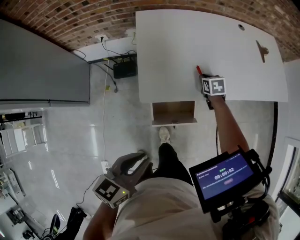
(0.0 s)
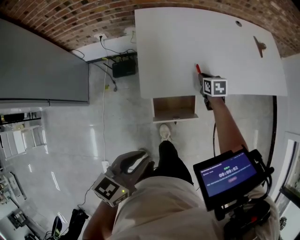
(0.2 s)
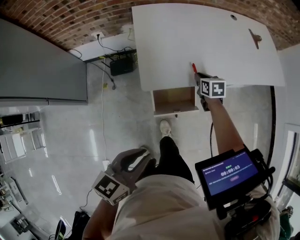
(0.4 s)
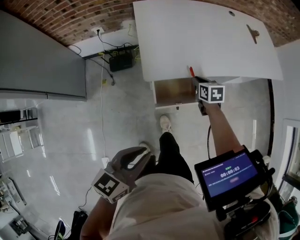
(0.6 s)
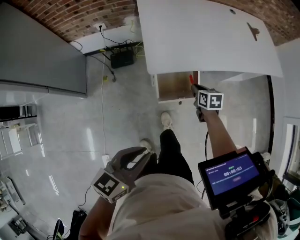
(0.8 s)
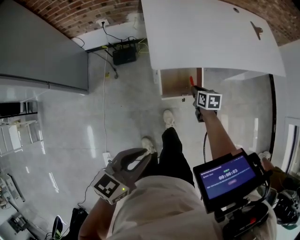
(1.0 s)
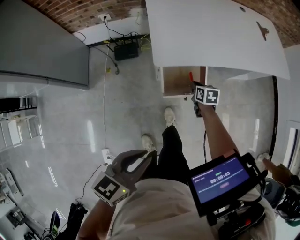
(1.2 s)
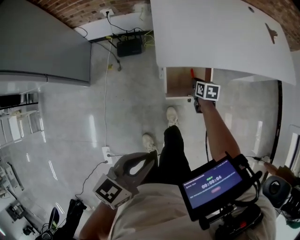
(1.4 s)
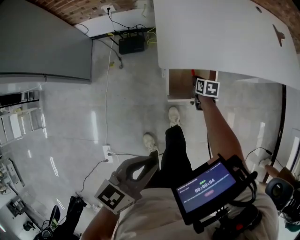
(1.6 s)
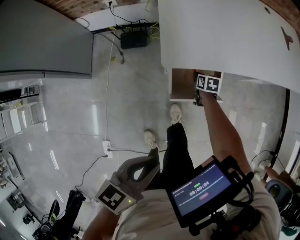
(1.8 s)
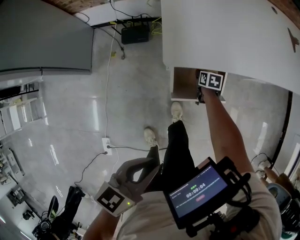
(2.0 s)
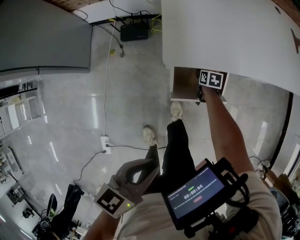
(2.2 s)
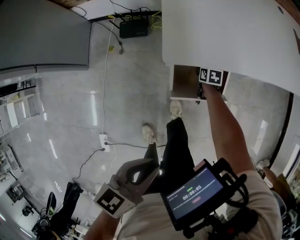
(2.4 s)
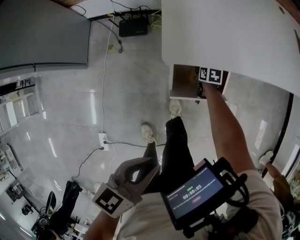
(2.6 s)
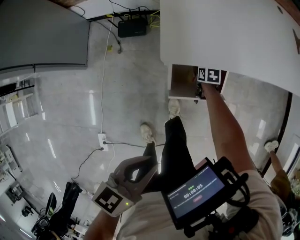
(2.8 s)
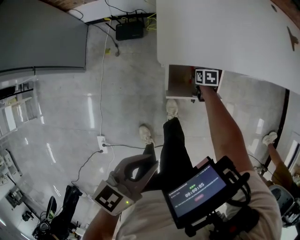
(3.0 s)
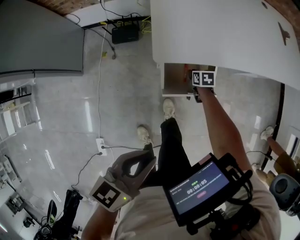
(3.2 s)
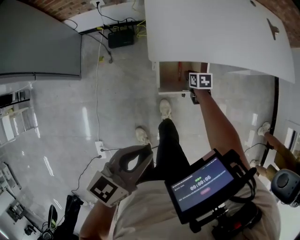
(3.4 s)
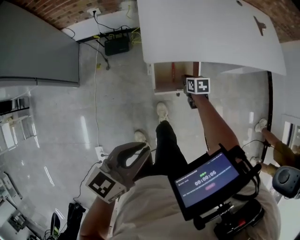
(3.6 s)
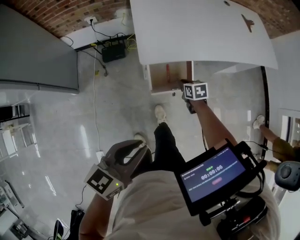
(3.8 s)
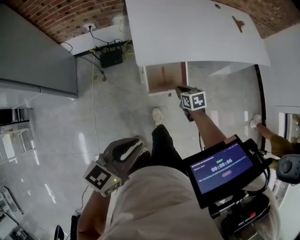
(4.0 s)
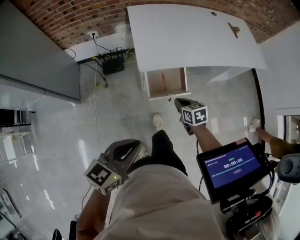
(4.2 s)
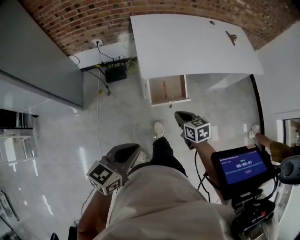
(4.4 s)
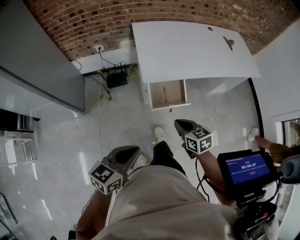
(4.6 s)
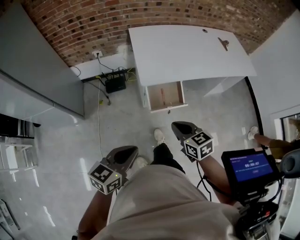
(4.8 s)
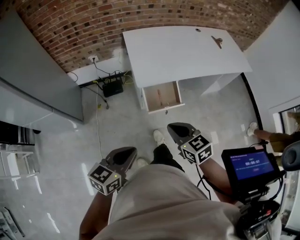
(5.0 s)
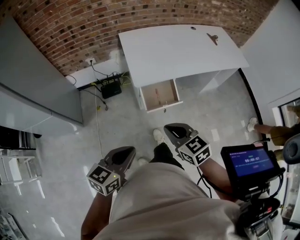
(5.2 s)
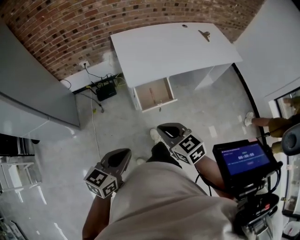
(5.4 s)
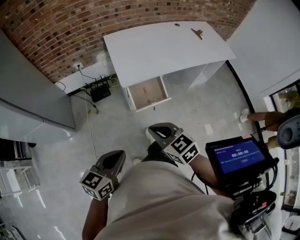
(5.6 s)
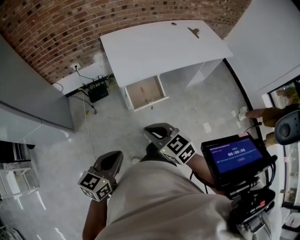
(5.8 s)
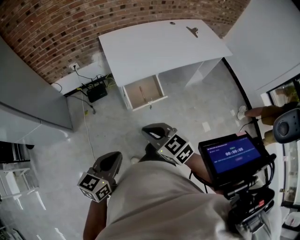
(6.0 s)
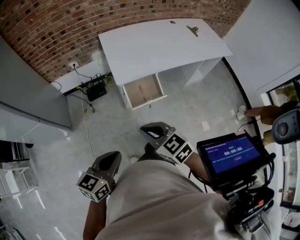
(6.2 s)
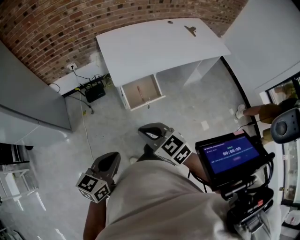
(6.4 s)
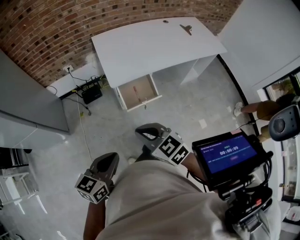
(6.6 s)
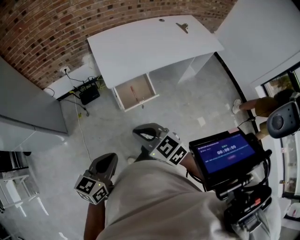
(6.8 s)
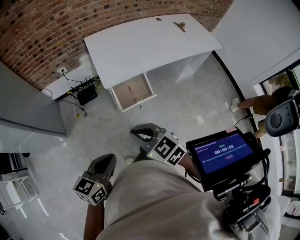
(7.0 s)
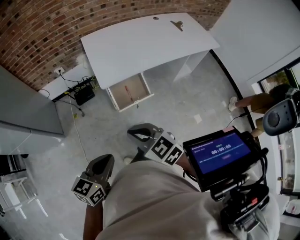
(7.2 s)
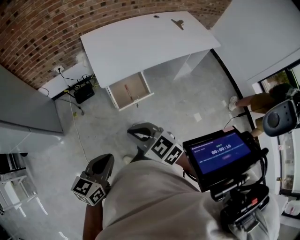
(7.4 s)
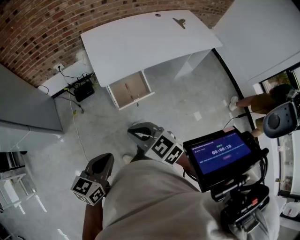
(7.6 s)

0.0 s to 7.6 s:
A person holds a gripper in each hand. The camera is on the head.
0.0 to 1.6 s: The right gripper goes roughly 25 cm backward and downward, while the left gripper goes about 15 cm backward.
1.6 to 3.0 s: The left gripper is displaced downward by some 5 cm, while the right gripper goes approximately 10 cm downward.
3.0 to 4.6 s: The right gripper goes roughly 50 cm upward and backward, and rotates about 30 degrees; the left gripper shifts roughly 15 cm backward and upward.
4.6 to 6.0 s: The right gripper goes roughly 15 cm upward, backward and to the left.
6.0 to 7.6 s: There are only small adjustments of the grippers.

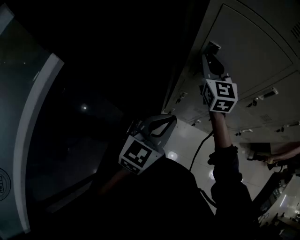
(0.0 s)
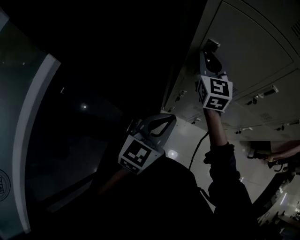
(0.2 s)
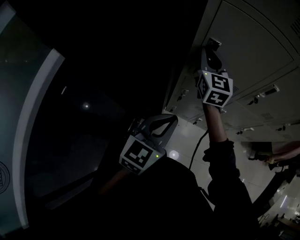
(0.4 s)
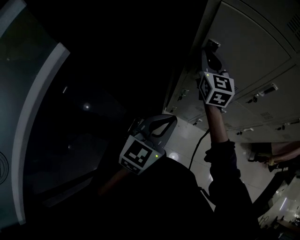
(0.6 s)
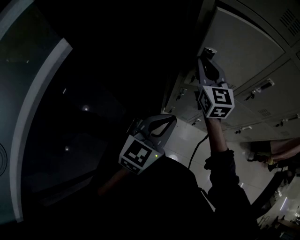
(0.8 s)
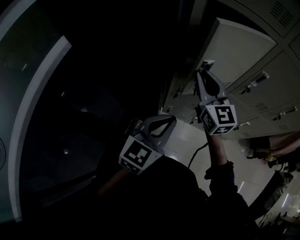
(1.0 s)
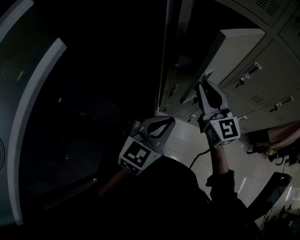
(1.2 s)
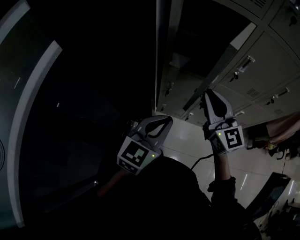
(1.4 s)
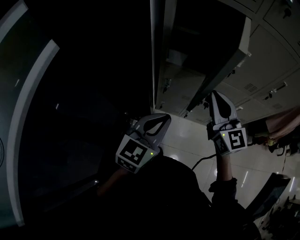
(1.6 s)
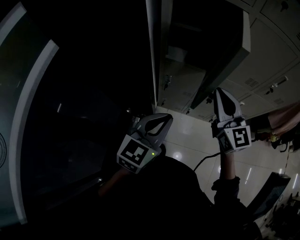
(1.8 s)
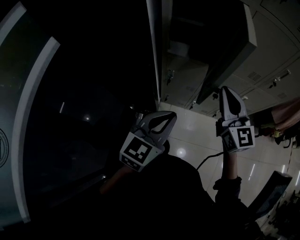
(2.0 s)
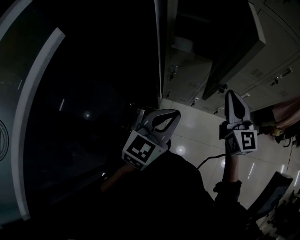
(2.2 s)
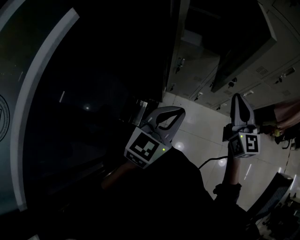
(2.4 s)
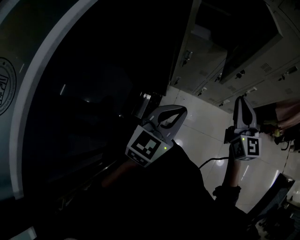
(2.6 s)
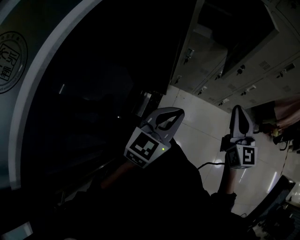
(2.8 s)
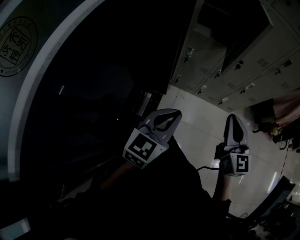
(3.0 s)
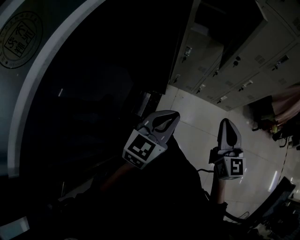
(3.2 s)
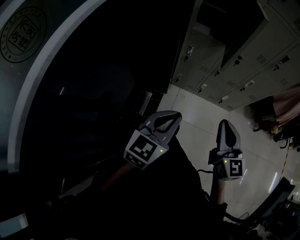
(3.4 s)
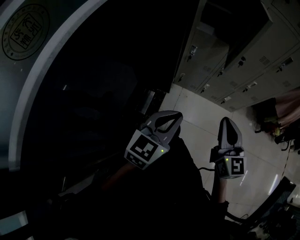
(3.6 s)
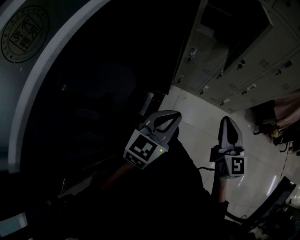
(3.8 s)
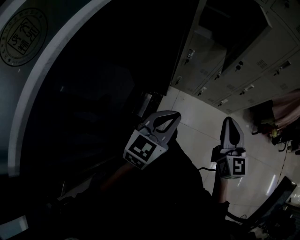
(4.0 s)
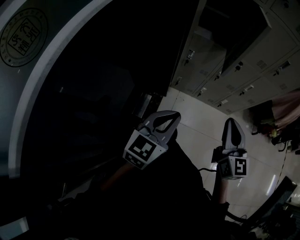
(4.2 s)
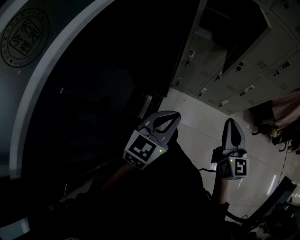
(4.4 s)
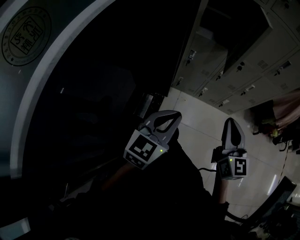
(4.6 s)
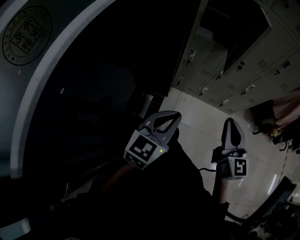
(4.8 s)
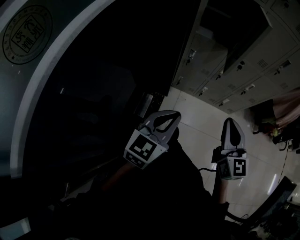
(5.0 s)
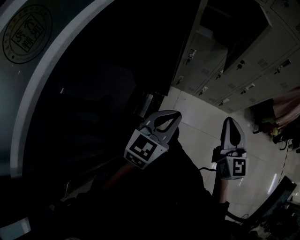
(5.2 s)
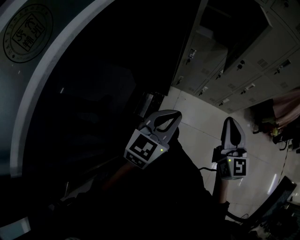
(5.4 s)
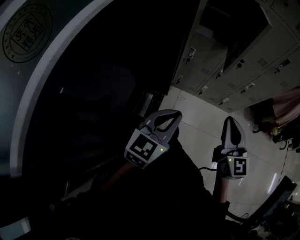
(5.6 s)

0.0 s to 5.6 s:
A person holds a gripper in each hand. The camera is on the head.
0.0 to 1.4 s: The left gripper shifts about 10 cm backward and to the right. Meanwhile the right gripper is displaced backward and to the right by roughly 25 cm.
1.4 to 2.8 s: The two grippers go some 20 cm backward.
2.8 to 4.2 s: The left gripper goes about 5 cm backward. Meanwhile the right gripper shifts about 10 cm backward.
4.2 to 5.6 s: The grippers make only small movements.

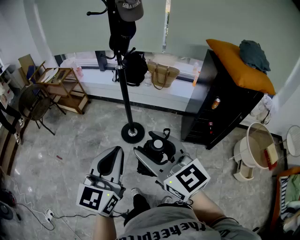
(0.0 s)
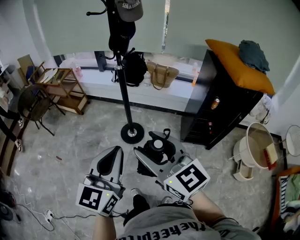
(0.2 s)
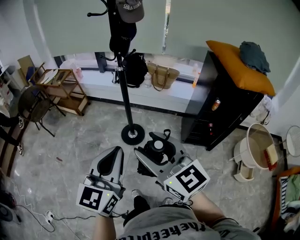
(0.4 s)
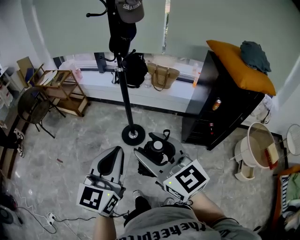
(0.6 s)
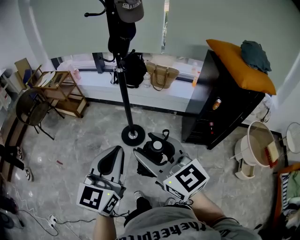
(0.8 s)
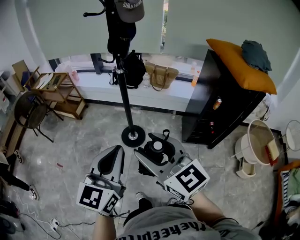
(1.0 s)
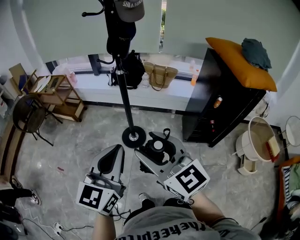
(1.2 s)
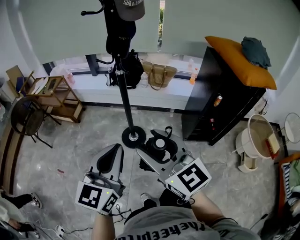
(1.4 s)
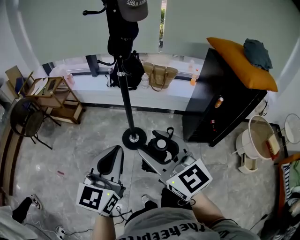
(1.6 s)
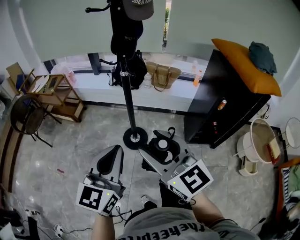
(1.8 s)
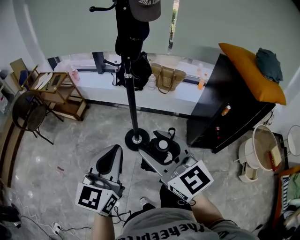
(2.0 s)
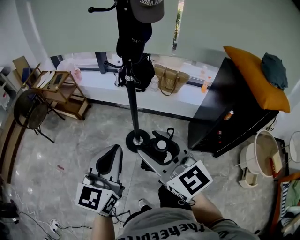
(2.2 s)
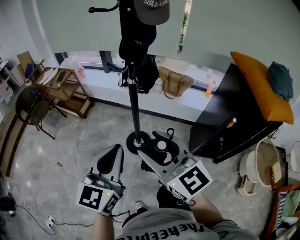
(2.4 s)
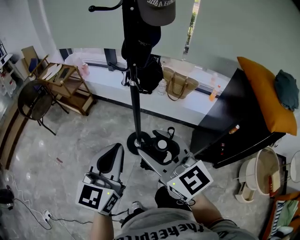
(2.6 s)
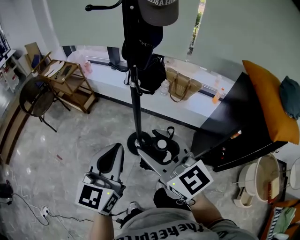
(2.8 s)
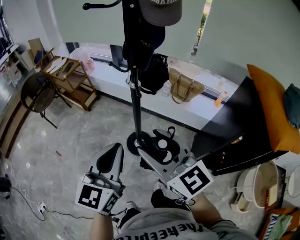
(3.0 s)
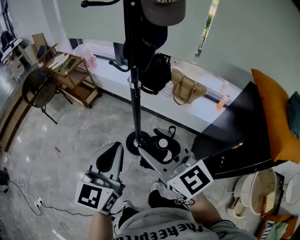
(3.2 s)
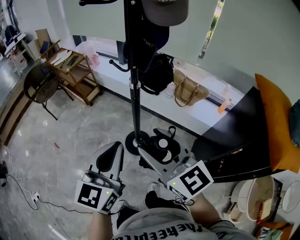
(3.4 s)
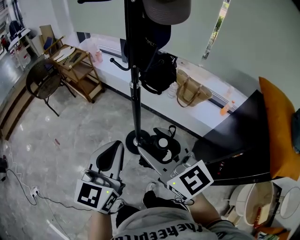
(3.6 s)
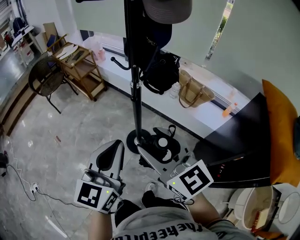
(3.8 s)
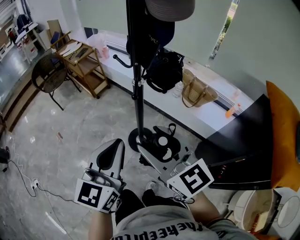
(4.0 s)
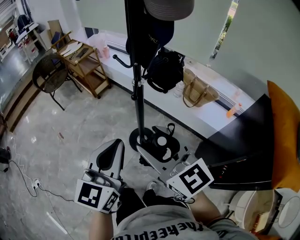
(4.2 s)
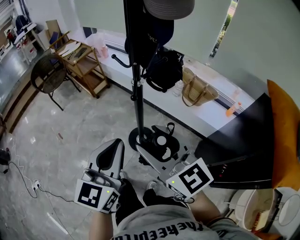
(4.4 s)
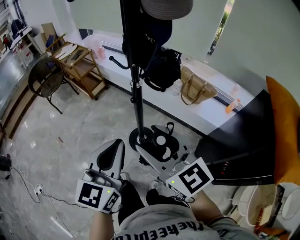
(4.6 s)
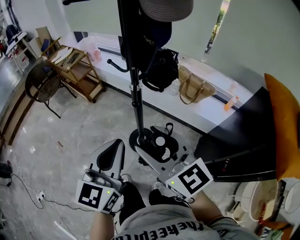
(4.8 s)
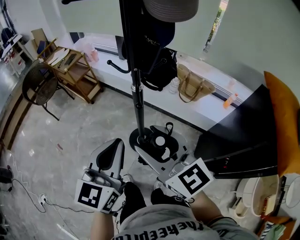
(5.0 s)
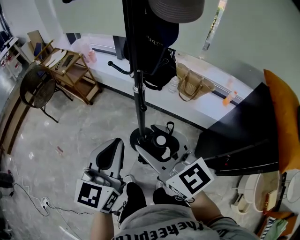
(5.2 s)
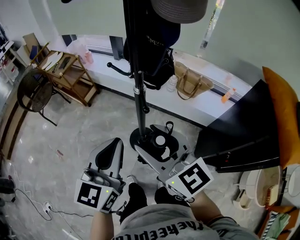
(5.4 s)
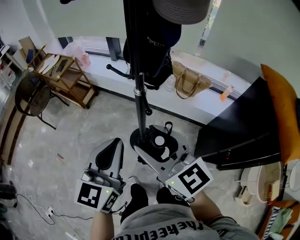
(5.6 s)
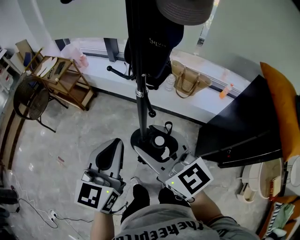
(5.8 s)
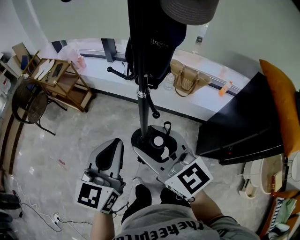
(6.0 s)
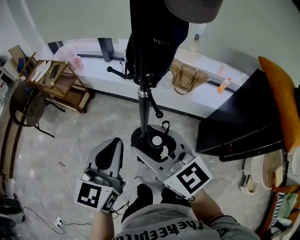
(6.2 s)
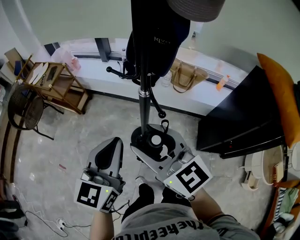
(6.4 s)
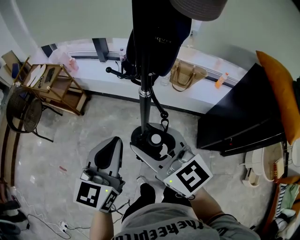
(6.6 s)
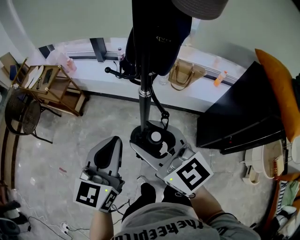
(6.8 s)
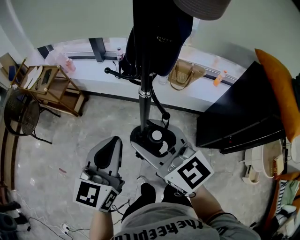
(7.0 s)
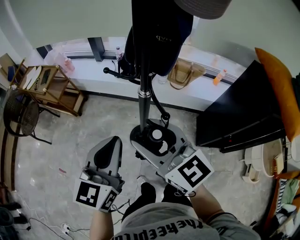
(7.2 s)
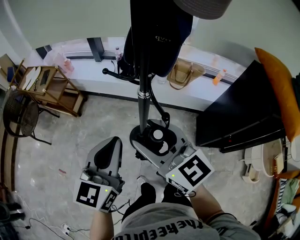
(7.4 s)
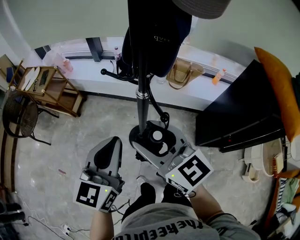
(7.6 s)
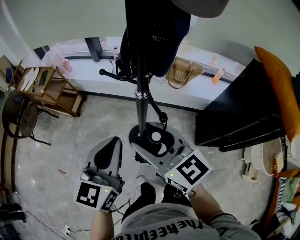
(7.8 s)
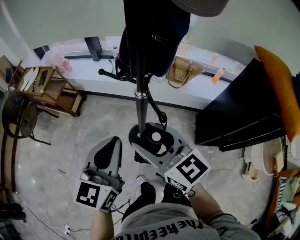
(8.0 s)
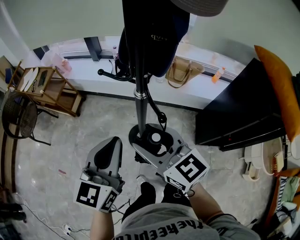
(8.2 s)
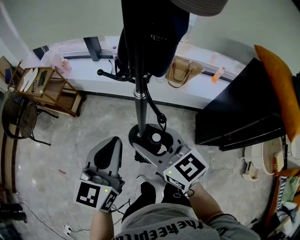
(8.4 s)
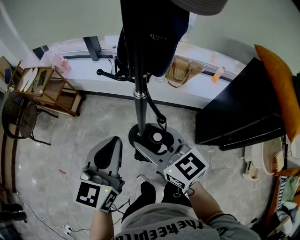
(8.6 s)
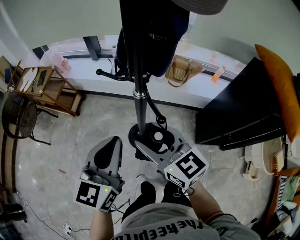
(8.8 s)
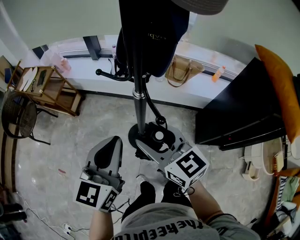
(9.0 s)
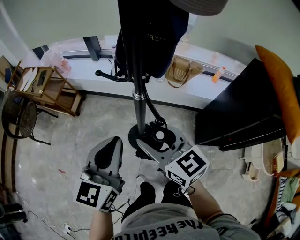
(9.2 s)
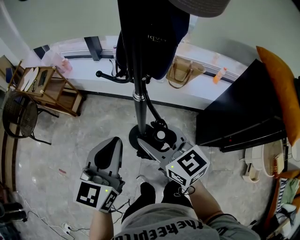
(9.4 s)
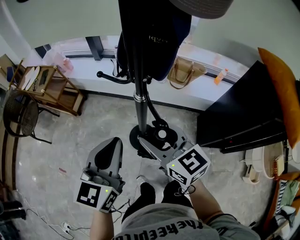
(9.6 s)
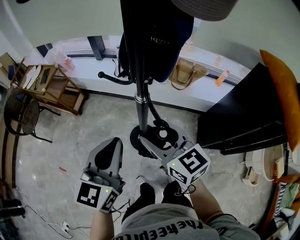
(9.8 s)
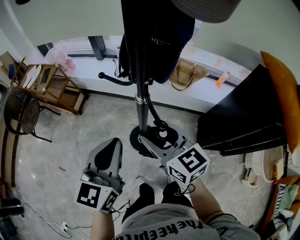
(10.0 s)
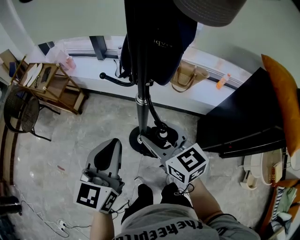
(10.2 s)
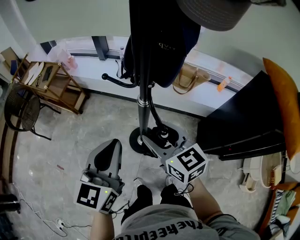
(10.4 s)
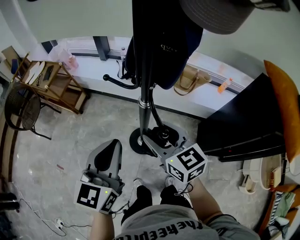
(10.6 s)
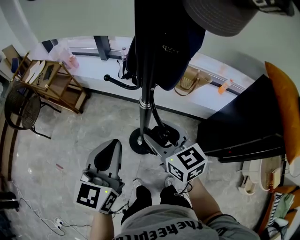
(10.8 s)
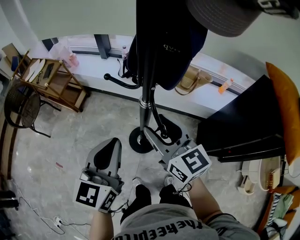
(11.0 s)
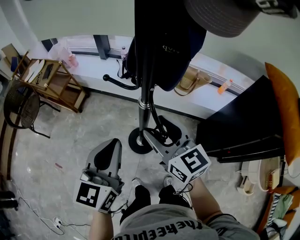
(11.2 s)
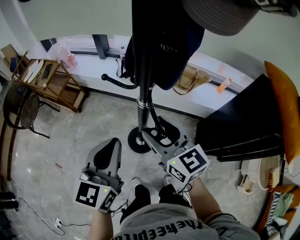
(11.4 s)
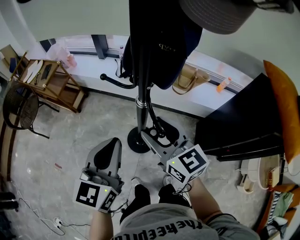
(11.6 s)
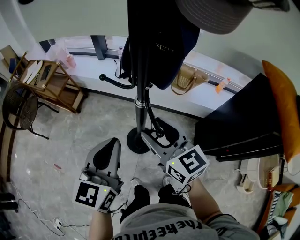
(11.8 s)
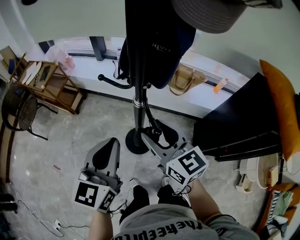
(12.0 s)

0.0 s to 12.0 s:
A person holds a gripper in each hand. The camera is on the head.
0.0 to 1.6 s: Both grippers move forward and to the left, approximately 10 cm.
1.6 to 3.0 s: The two grippers go about 15 cm forward and to the right.
3.0 to 4.4 s: The right gripper shifts by approximately 5 cm. The left gripper shifts by approximately 5 cm.
4.4 to 6.0 s: The left gripper is displaced forward and to the left by about 15 cm. Meanwhile the right gripper goes some 10 cm to the left and forward.
6.0 to 7.6 s: The left gripper moves approximately 5 cm. Meanwhile the right gripper changes place by about 5 cm.
7.6 to 9.0 s: The right gripper ends up approximately 5 cm from where it was.
9.0 to 12.0 s: The grippers stay close to where they were, moving slightly.
